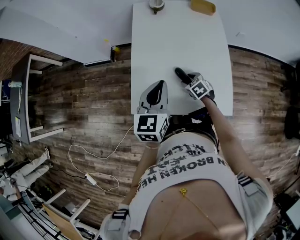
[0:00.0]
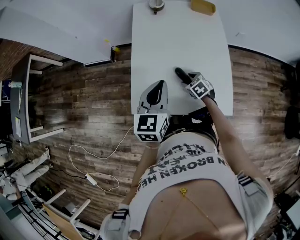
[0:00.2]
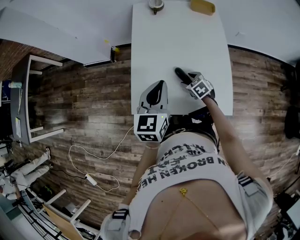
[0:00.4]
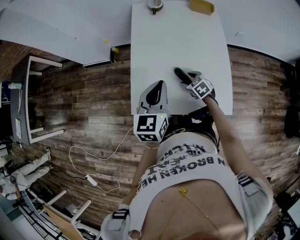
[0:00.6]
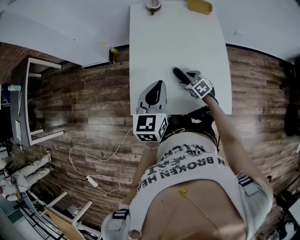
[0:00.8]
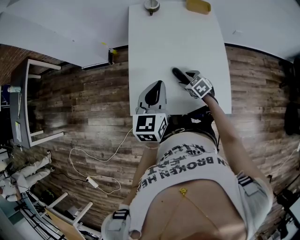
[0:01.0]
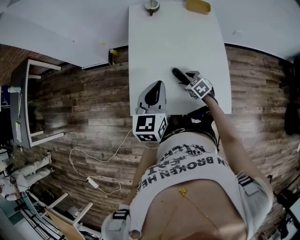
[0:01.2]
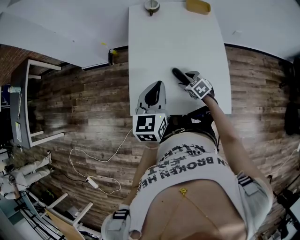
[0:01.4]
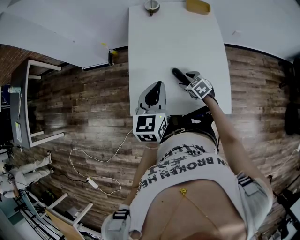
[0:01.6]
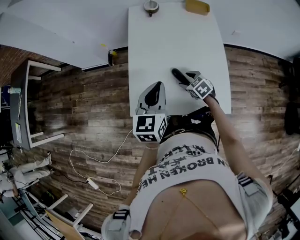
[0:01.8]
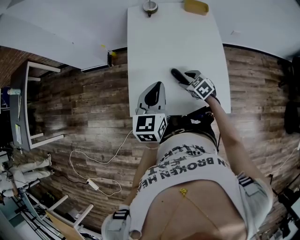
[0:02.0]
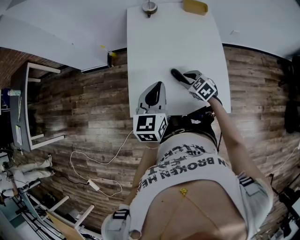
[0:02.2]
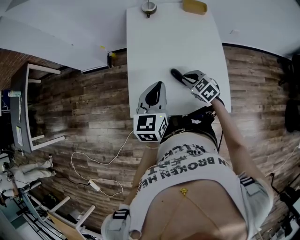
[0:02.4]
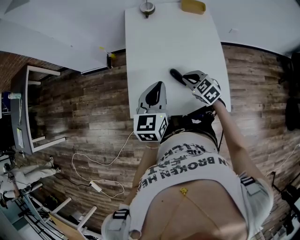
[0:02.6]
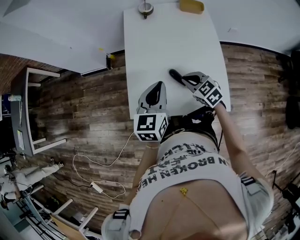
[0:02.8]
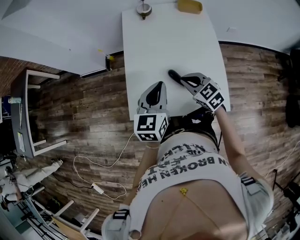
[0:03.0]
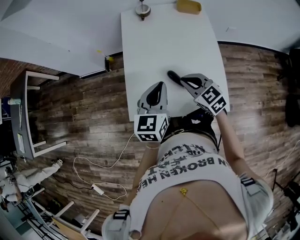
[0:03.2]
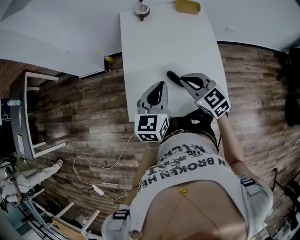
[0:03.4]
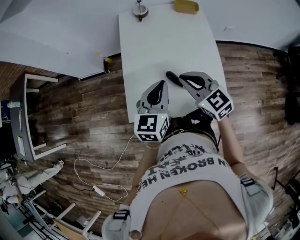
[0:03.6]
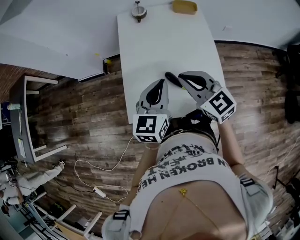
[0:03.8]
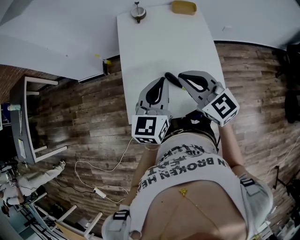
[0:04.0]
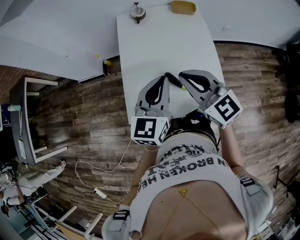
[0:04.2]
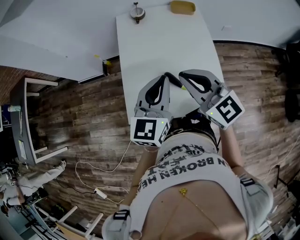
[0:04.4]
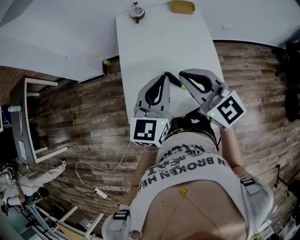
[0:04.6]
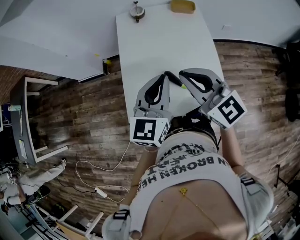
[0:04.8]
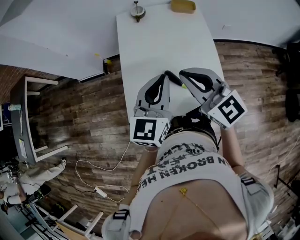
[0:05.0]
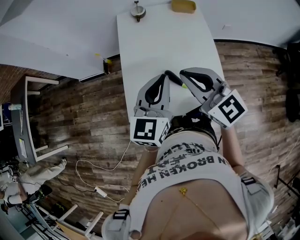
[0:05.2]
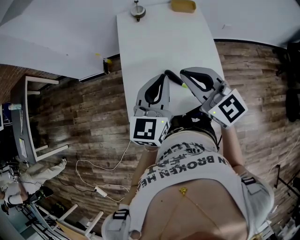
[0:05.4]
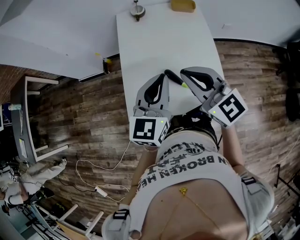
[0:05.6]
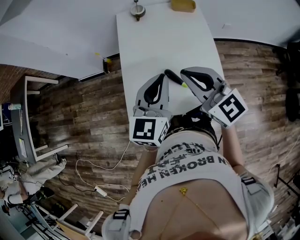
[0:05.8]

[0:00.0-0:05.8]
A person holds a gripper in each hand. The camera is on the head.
0:00.0 to 0:01.4: The grippers move only a little.
0:01.4 to 0:02.8: The right gripper is displaced upward by some 10 cm, and closes.
0:02.8 to 0:04.4: The left gripper is displaced upward by some 10 cm. The right gripper is displaced upward by roughly 20 cm, and points its fingers roughly 30 degrees further upward.
0:04.4 to 0:05.8: The two grippers keep their place.

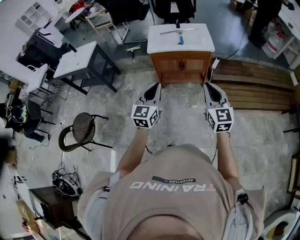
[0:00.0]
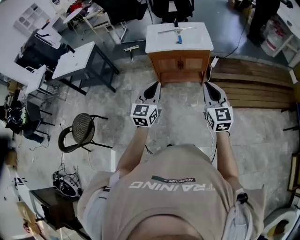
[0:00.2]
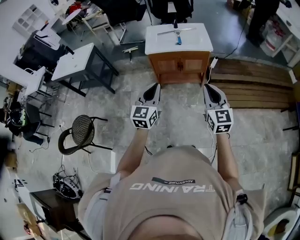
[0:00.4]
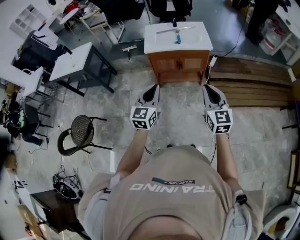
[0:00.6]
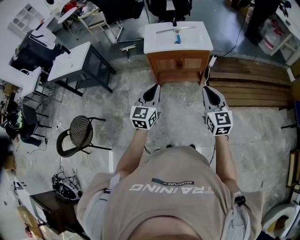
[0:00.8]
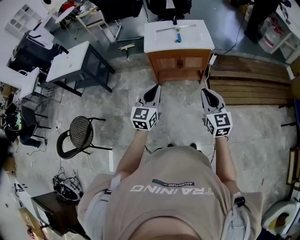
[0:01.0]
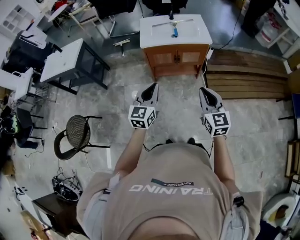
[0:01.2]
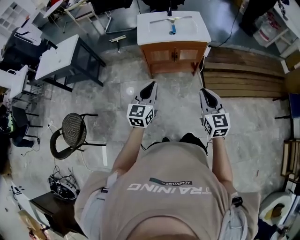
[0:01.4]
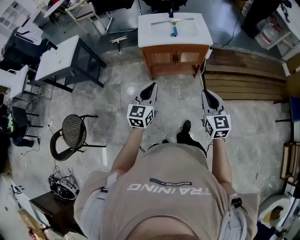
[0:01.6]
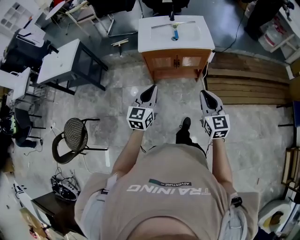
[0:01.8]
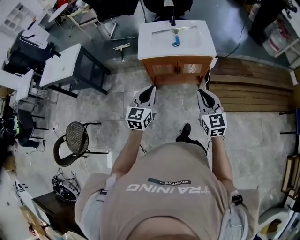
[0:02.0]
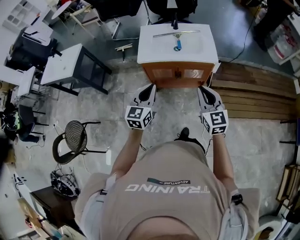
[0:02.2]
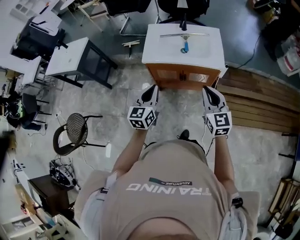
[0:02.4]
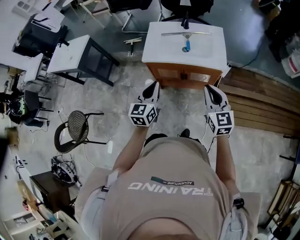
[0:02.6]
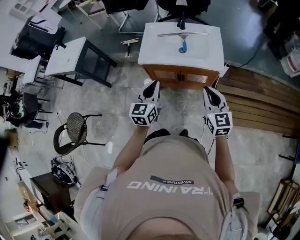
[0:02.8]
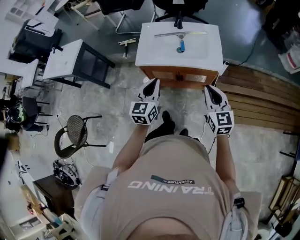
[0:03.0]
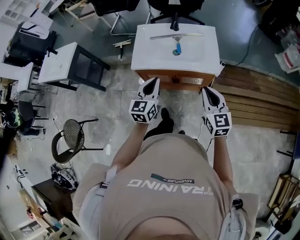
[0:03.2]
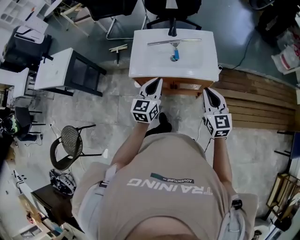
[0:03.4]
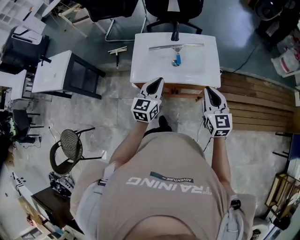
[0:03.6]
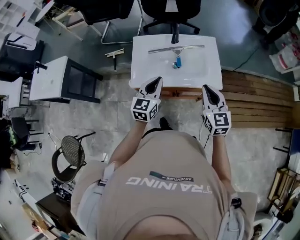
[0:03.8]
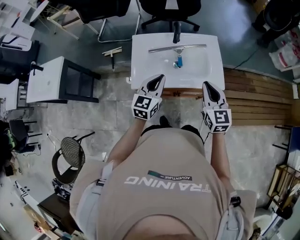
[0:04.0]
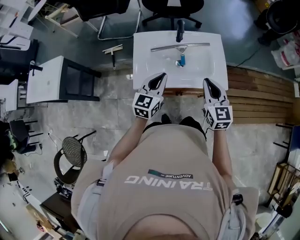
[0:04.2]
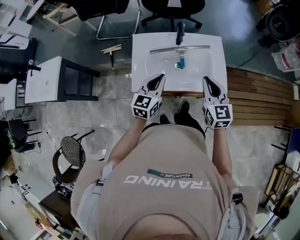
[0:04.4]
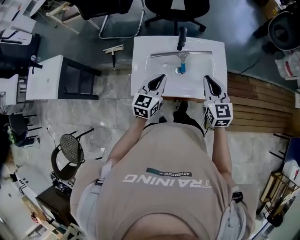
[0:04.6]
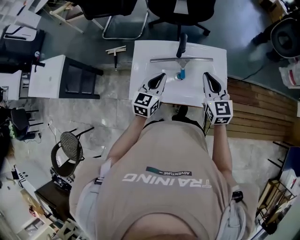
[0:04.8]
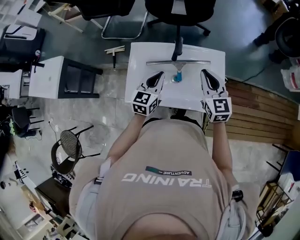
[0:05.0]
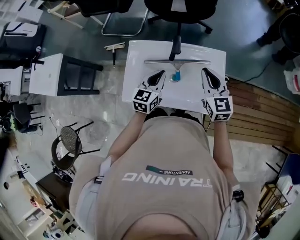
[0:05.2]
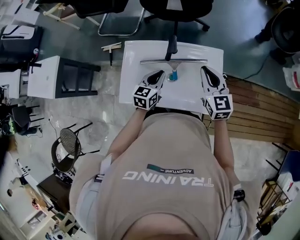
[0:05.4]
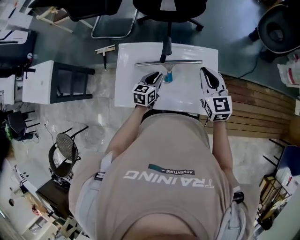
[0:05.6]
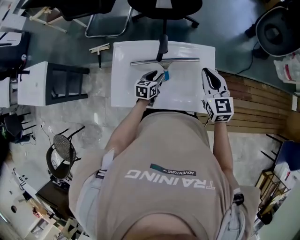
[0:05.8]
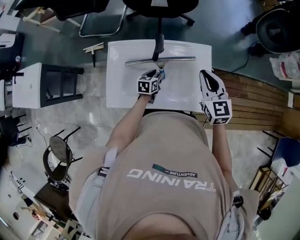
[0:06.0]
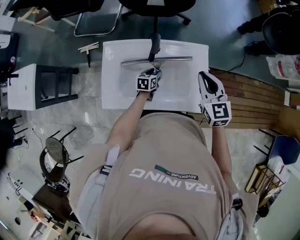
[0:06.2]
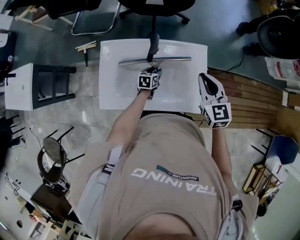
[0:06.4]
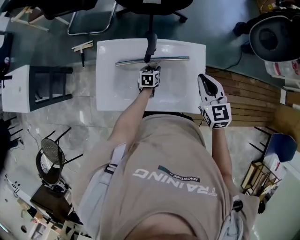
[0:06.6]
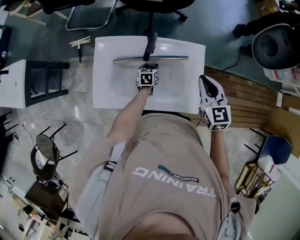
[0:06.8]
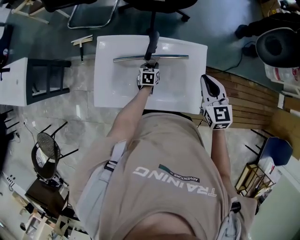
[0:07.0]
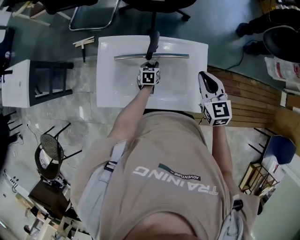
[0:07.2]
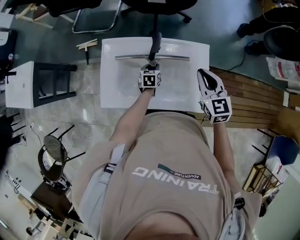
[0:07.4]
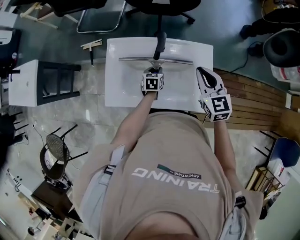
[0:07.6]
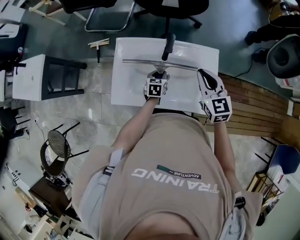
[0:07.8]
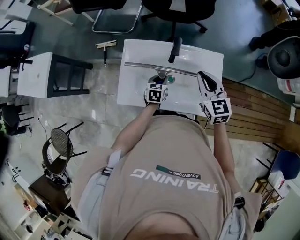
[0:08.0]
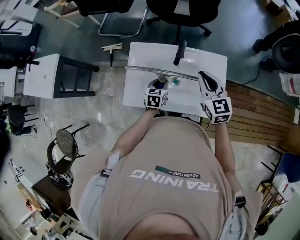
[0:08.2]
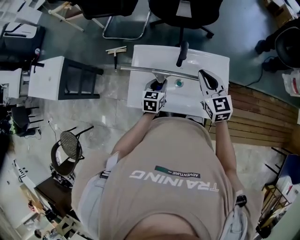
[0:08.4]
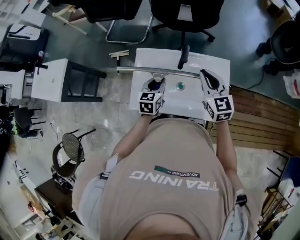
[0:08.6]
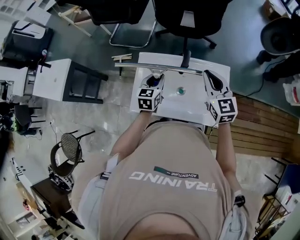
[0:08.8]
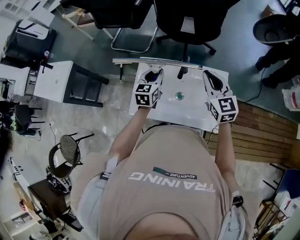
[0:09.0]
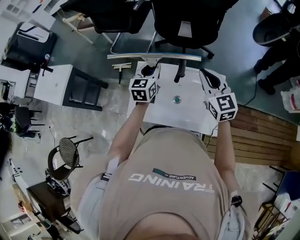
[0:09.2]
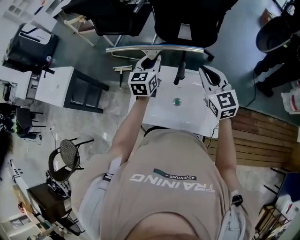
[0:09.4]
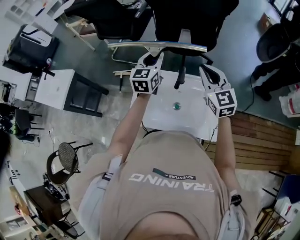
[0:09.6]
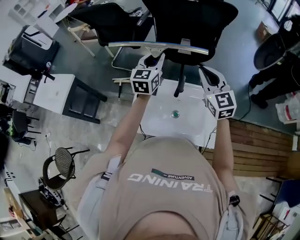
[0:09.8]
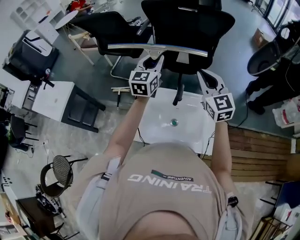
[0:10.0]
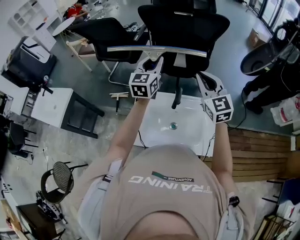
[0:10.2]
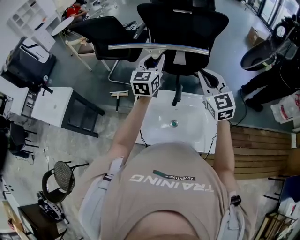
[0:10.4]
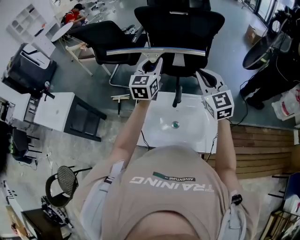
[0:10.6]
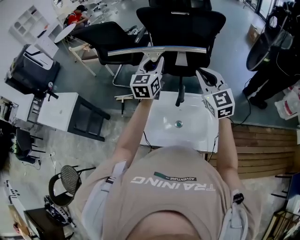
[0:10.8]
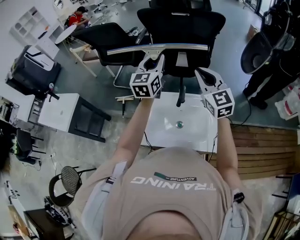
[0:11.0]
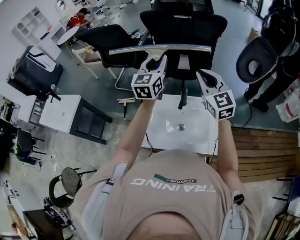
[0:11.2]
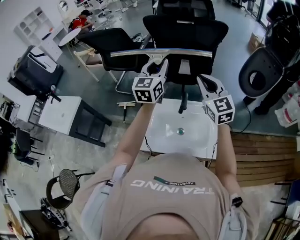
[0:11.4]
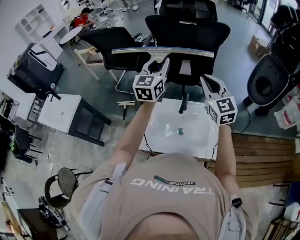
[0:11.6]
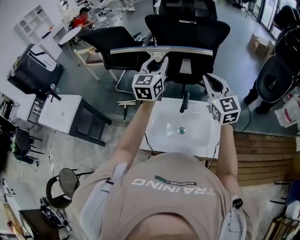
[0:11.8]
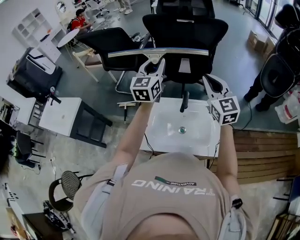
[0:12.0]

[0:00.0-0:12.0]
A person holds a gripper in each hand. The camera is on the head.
0:00.0 to 0:01.6: The right gripper shifts roughly 5 cm downward; the left gripper travels forward and downward by roughly 10 cm.
0:01.6 to 0:03.0: The grippers both shift forward by roughly 25 cm.
0:03.0 to 0:04.4: Both grippers travel together forward, about 25 cm.
0:04.4 to 0:06.0: The right gripper goes approximately 20 cm forward and to the right; the left gripper shifts approximately 30 cm downward and forward, swivels approximately 30 degrees, and opens up.
0:07.6 to 0:09.0: The right gripper travels upward and to the left by about 10 cm, while the left gripper goes roughly 30 cm upward and to the left, and changes its angle by approximately 30 degrees.
0:09.0 to 0:10.4: The left gripper goes some 25 cm upward and forward, and changes its angle by approximately 20 degrees, while the right gripper travels upward by roughly 15 cm.
0:10.4 to 0:12.0: The left gripper shifts by roughly 5 cm.

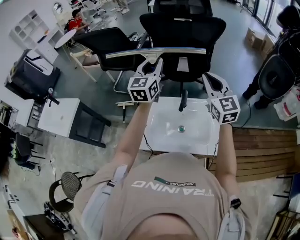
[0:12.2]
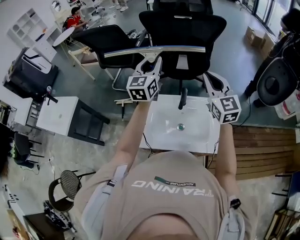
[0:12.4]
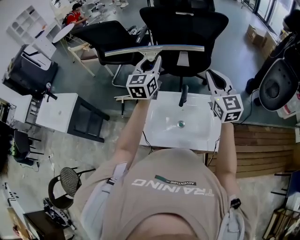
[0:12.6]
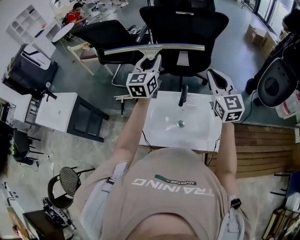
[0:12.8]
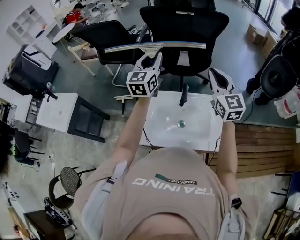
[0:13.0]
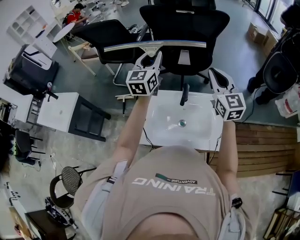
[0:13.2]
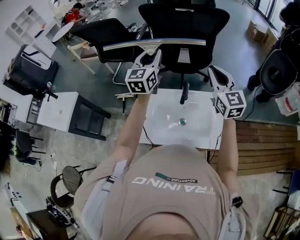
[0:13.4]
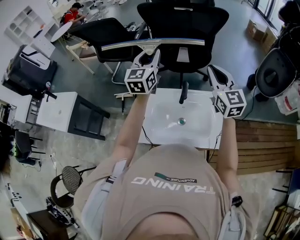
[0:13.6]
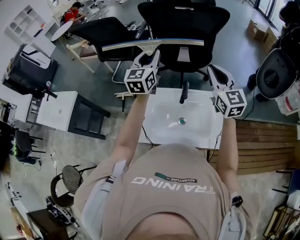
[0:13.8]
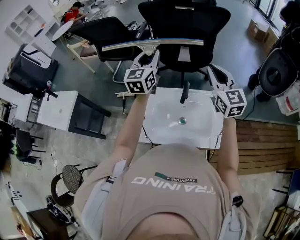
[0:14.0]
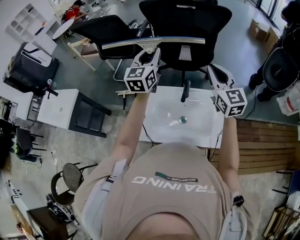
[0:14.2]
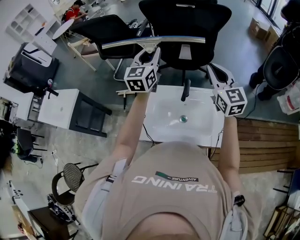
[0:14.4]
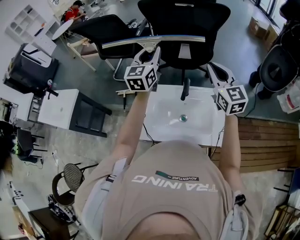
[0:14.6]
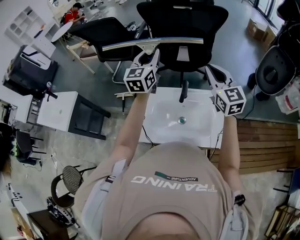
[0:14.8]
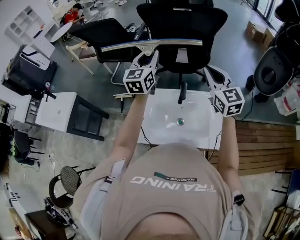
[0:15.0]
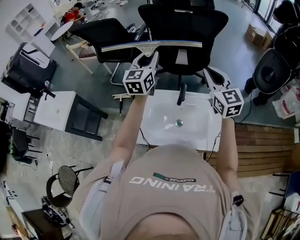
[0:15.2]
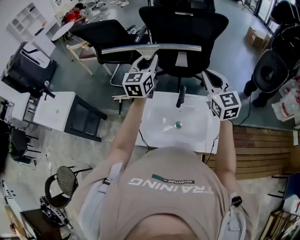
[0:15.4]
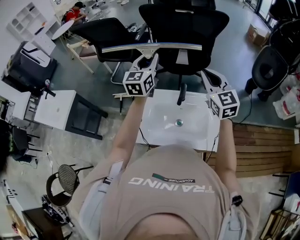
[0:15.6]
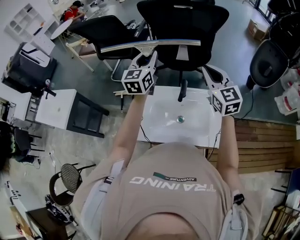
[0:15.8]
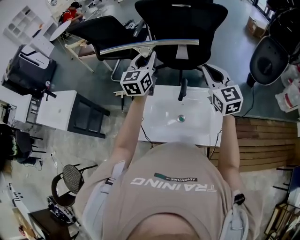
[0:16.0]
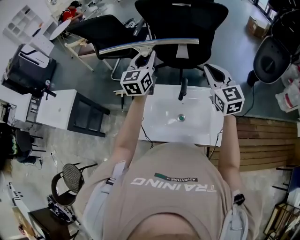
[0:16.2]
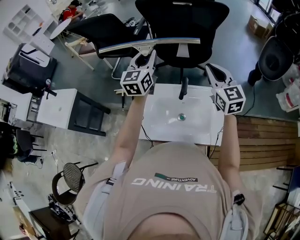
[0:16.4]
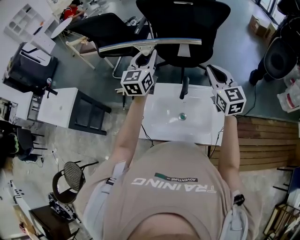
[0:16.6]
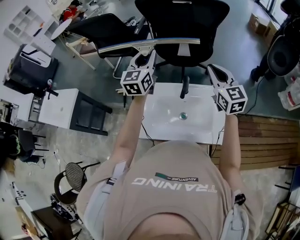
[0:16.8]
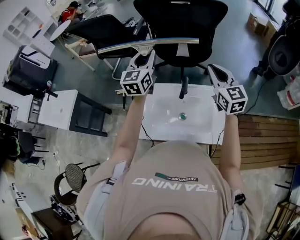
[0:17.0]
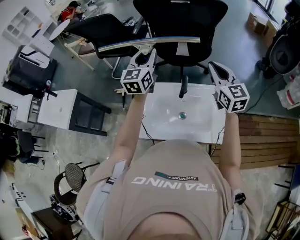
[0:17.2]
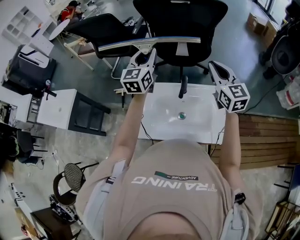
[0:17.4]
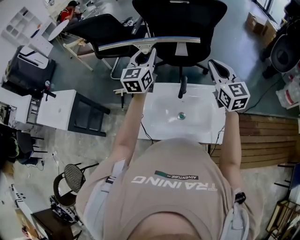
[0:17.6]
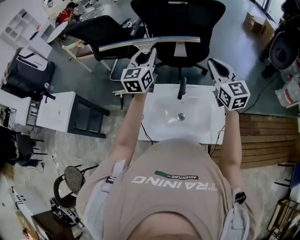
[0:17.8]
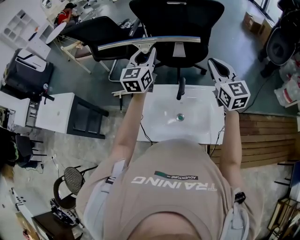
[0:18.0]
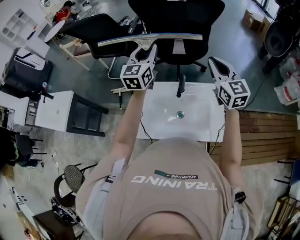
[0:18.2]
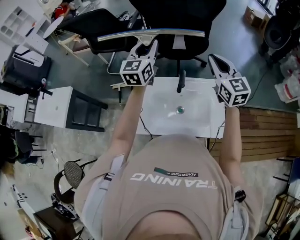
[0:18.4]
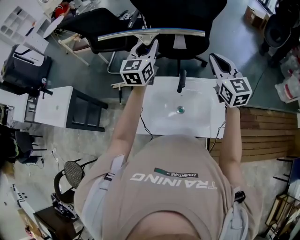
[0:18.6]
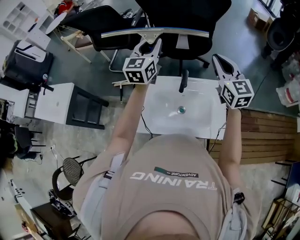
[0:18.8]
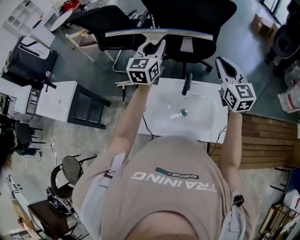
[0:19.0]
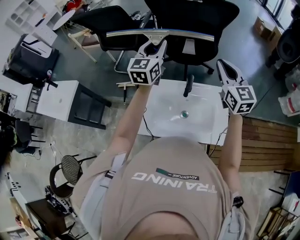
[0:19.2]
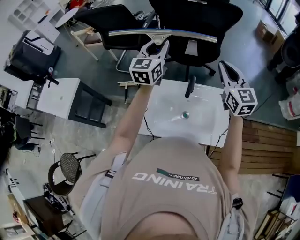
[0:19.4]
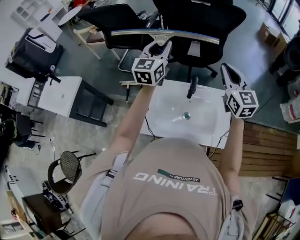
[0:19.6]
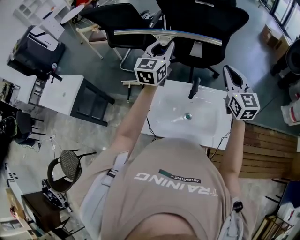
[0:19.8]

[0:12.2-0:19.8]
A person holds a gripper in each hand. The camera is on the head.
0:12.2 to 0:13.8: The grippers make only small movements.
0:13.8 to 0:15.2: Neither gripper changes place.
0:15.2 to 0:19.8: There are only small adjustments of the grippers.
